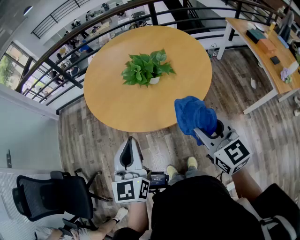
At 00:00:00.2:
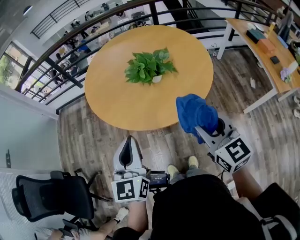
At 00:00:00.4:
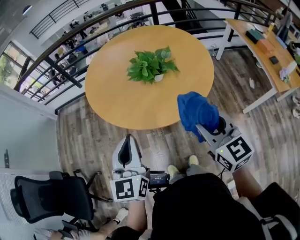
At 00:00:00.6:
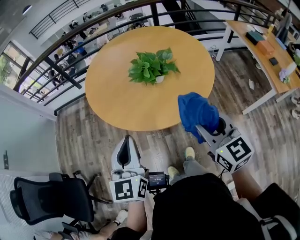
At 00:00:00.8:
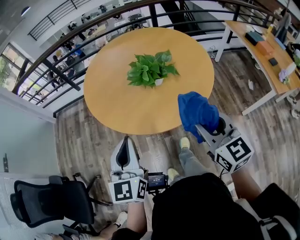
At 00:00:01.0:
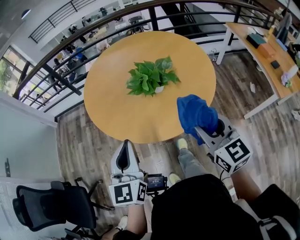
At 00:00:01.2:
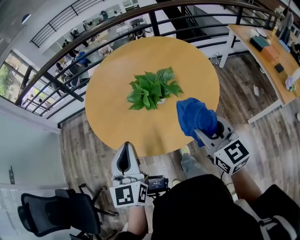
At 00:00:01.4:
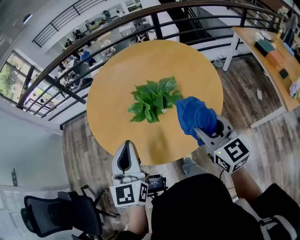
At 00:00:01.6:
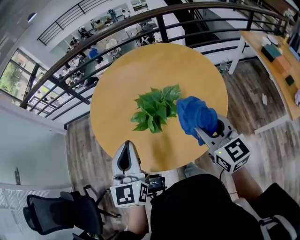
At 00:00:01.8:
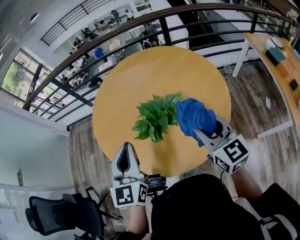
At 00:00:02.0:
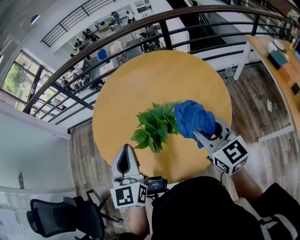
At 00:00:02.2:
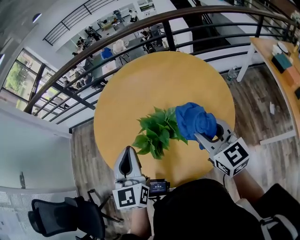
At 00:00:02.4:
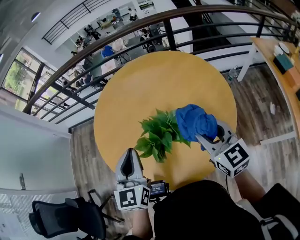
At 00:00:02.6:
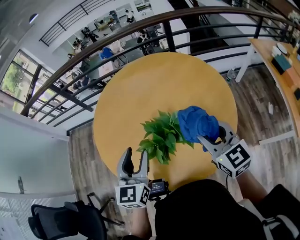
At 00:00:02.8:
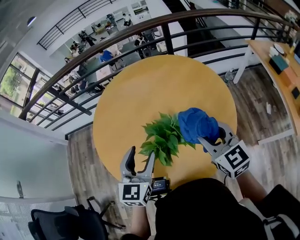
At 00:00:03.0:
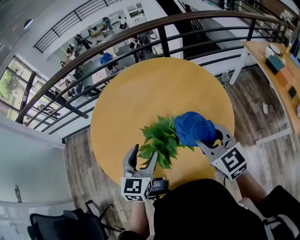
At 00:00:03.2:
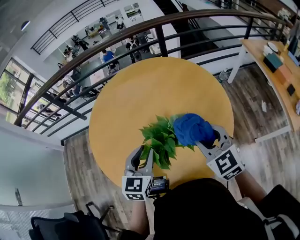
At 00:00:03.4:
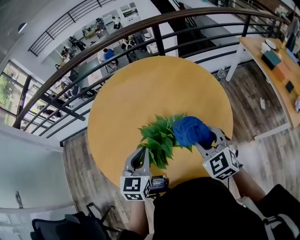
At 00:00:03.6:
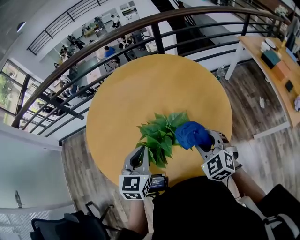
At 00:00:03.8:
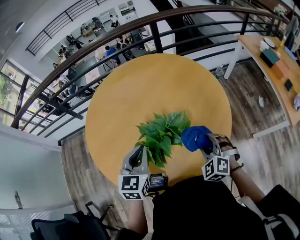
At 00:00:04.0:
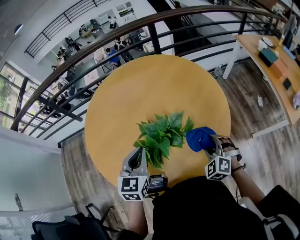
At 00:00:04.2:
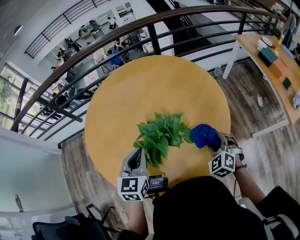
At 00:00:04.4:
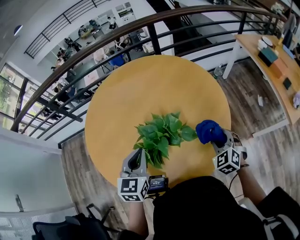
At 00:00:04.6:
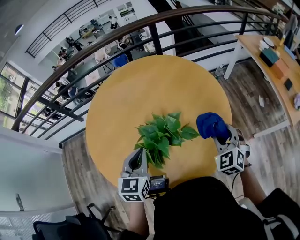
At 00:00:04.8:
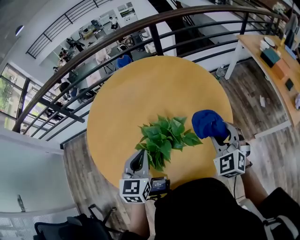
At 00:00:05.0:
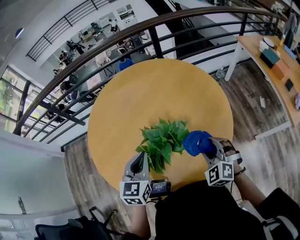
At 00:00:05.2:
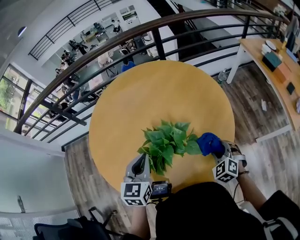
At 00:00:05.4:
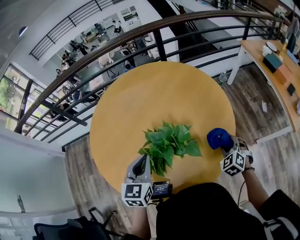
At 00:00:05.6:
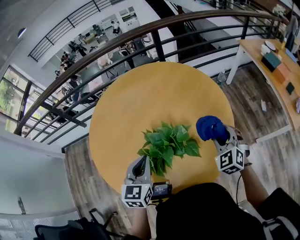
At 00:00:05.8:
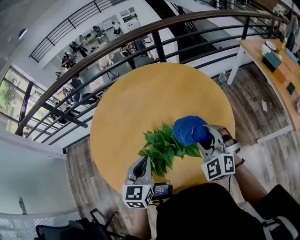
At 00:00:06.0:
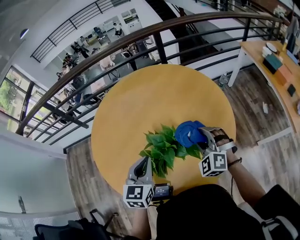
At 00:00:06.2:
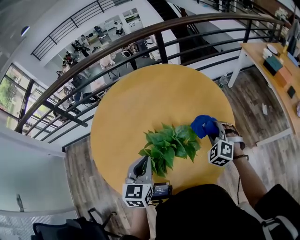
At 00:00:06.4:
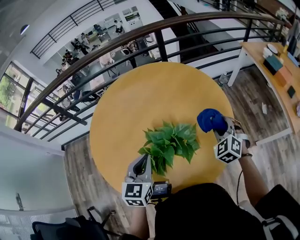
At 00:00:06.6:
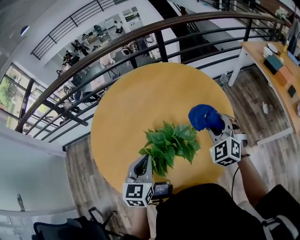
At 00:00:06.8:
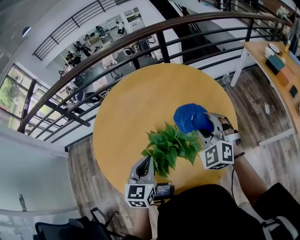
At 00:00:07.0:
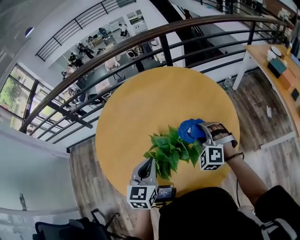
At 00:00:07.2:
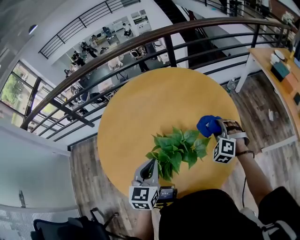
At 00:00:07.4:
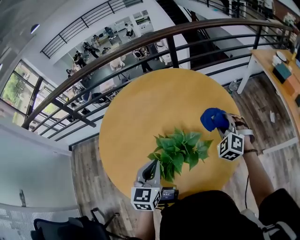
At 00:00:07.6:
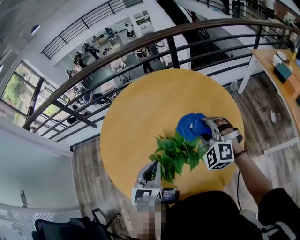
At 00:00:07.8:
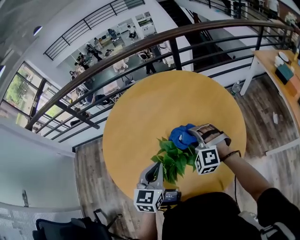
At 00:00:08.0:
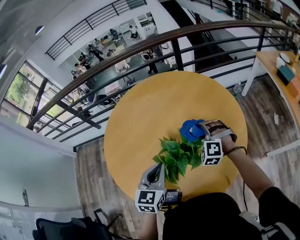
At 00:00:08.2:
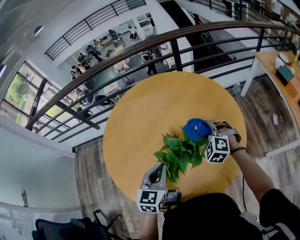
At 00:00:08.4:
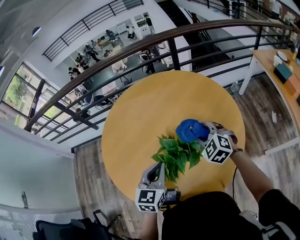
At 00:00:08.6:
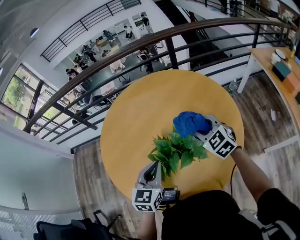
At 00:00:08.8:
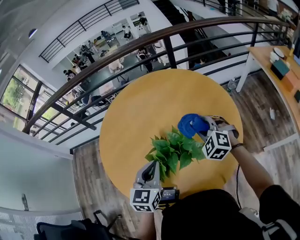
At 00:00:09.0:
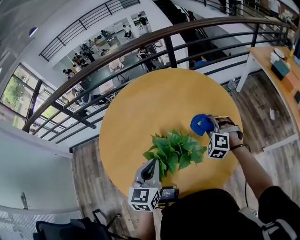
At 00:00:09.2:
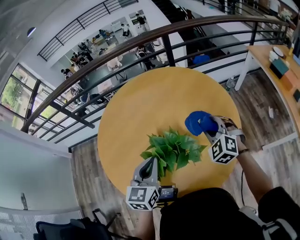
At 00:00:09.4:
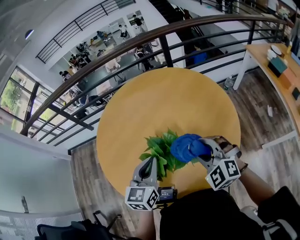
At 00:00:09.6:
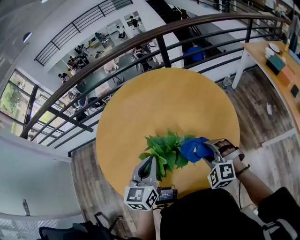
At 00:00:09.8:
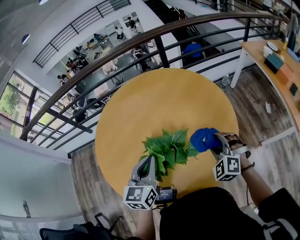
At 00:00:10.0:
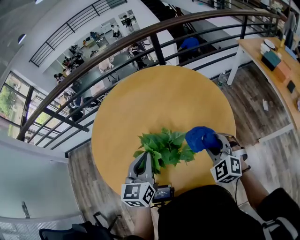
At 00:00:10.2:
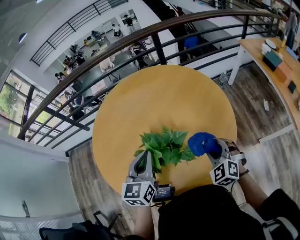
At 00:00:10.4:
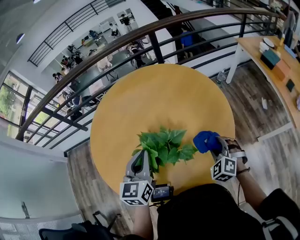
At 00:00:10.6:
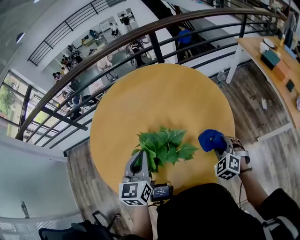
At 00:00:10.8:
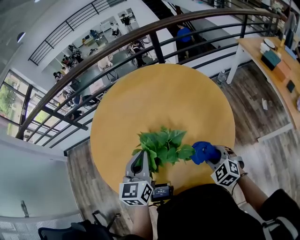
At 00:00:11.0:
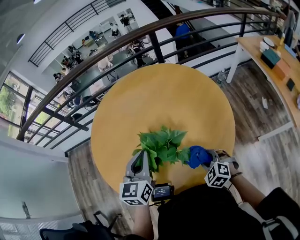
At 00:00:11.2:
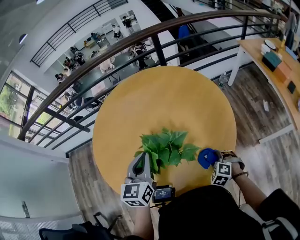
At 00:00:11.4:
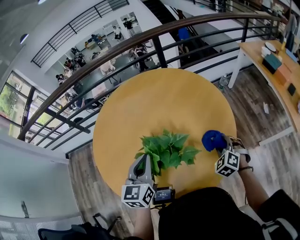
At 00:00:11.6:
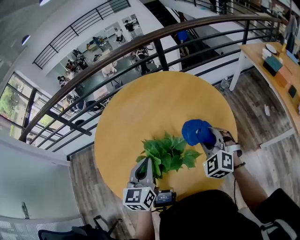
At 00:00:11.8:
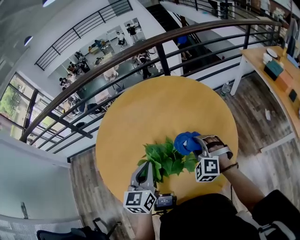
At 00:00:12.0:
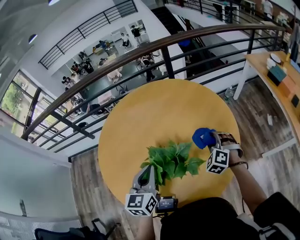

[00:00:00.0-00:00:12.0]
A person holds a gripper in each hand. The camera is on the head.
00:00:00.0 to 00:00:01.6: Both grippers move forward, approximately 20 cm.
00:00:01.6 to 00:00:03.0: The right gripper is displaced forward by approximately 10 cm; the left gripper travels forward, downward and to the right by about 15 cm, swivels some 20 degrees, and opens.
00:00:03.0 to 00:00:04.4: The right gripper travels downward and to the right by roughly 20 cm, and changes its angle by about 40 degrees; the left gripper closes up.
00:00:04.4 to 00:00:06.0: The right gripper goes up and down, some 15 cm each way, reversing 3 times, and rotates roughly 20 degrees.
00:00:06.0 to 00:00:07.6: The right gripper moves left and right over roughly 15 cm, changing direction 3 times.
00:00:07.6 to 00:00:09.0: The right gripper is displaced downward and to the right by some 15 cm.
00:00:09.0 to 00:00:10.4: The right gripper moves backward and to the right, approximately 15 cm.
00:00:10.4 to 00:00:12.0: The right gripper goes up and down, about 20 cm each way, reversing 2 times.

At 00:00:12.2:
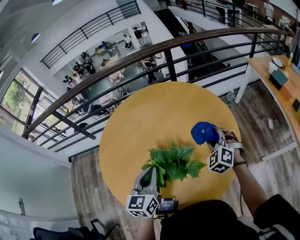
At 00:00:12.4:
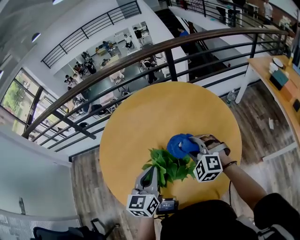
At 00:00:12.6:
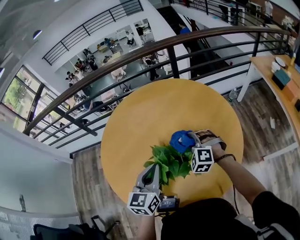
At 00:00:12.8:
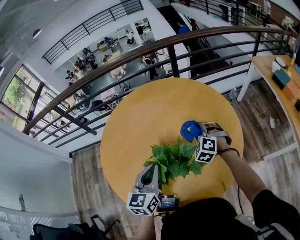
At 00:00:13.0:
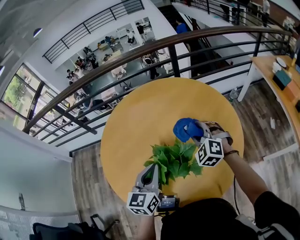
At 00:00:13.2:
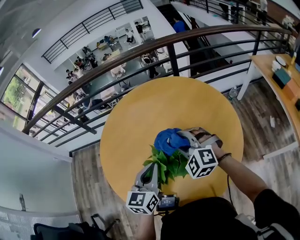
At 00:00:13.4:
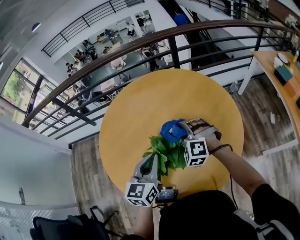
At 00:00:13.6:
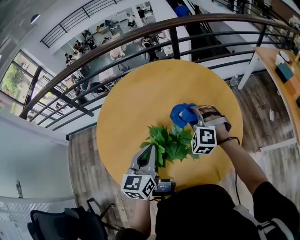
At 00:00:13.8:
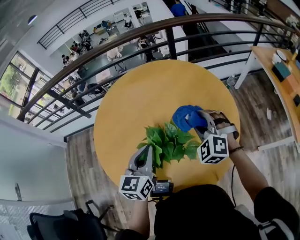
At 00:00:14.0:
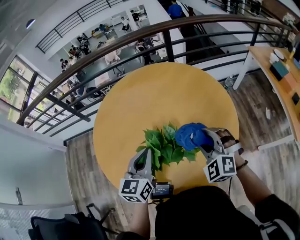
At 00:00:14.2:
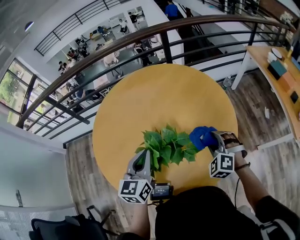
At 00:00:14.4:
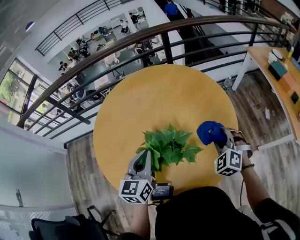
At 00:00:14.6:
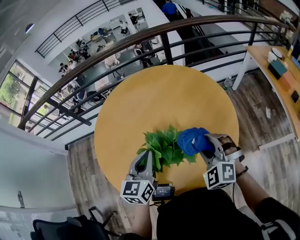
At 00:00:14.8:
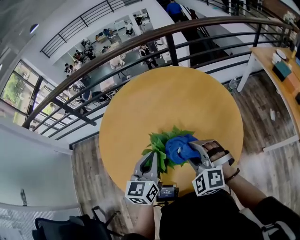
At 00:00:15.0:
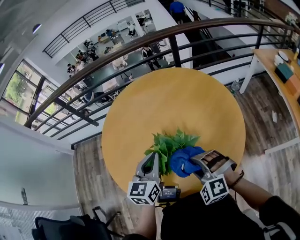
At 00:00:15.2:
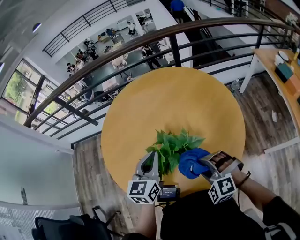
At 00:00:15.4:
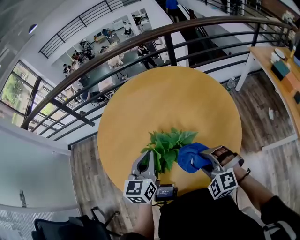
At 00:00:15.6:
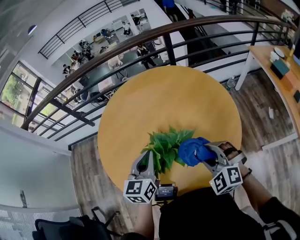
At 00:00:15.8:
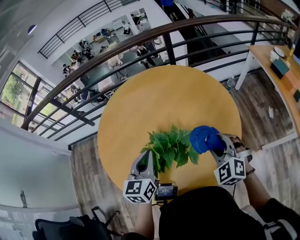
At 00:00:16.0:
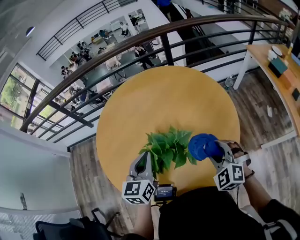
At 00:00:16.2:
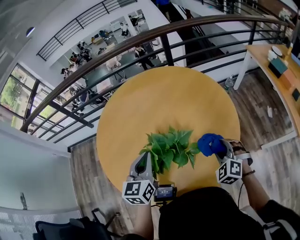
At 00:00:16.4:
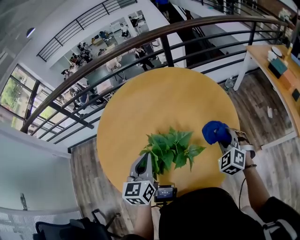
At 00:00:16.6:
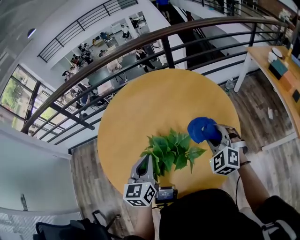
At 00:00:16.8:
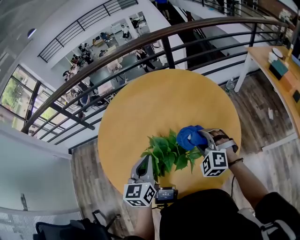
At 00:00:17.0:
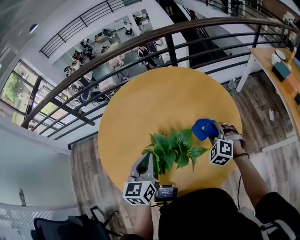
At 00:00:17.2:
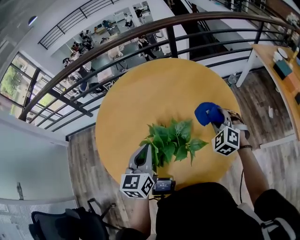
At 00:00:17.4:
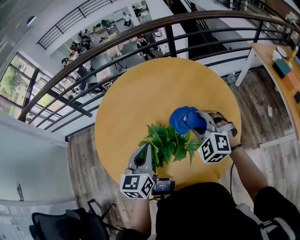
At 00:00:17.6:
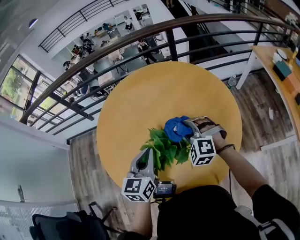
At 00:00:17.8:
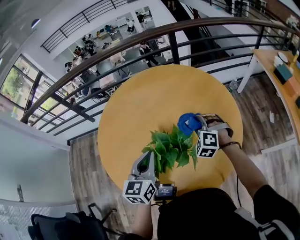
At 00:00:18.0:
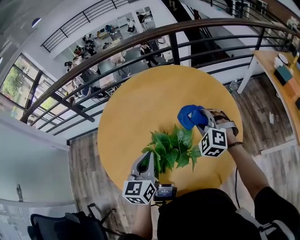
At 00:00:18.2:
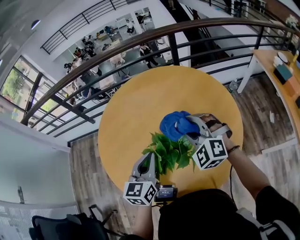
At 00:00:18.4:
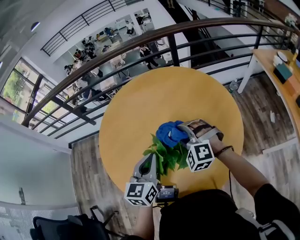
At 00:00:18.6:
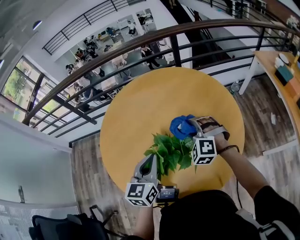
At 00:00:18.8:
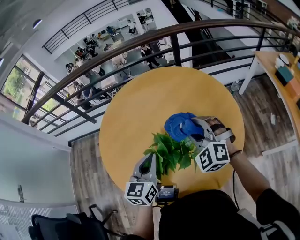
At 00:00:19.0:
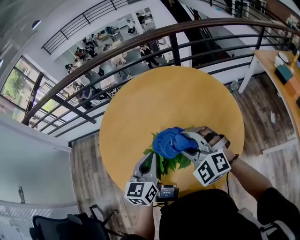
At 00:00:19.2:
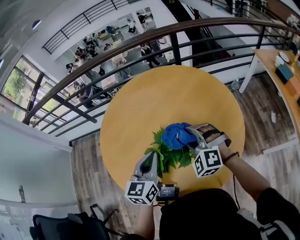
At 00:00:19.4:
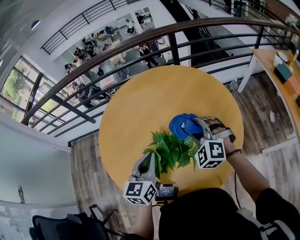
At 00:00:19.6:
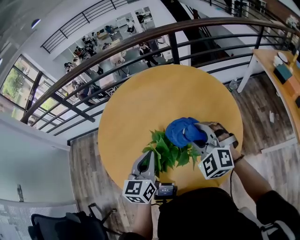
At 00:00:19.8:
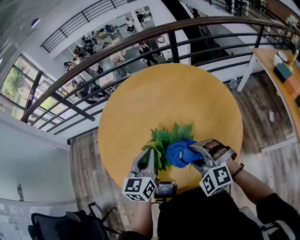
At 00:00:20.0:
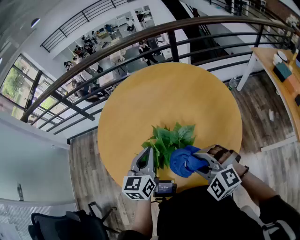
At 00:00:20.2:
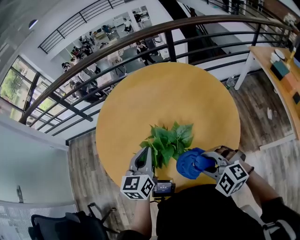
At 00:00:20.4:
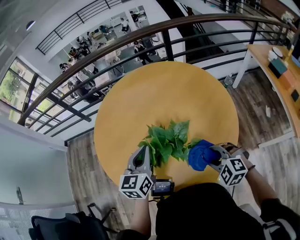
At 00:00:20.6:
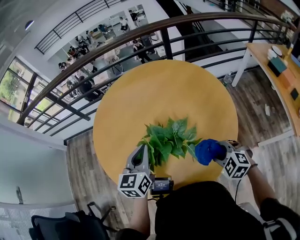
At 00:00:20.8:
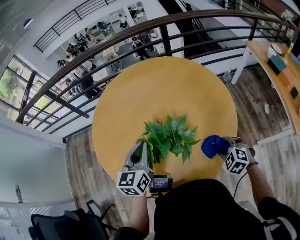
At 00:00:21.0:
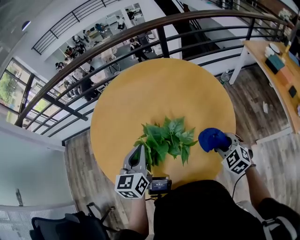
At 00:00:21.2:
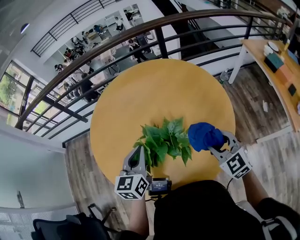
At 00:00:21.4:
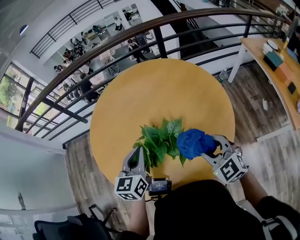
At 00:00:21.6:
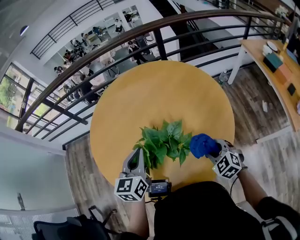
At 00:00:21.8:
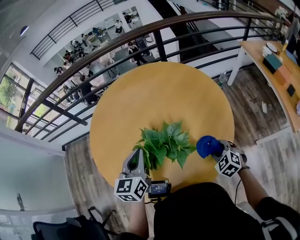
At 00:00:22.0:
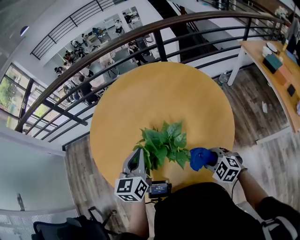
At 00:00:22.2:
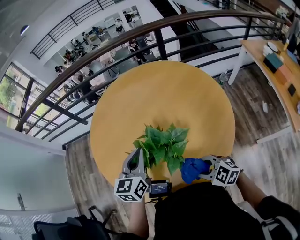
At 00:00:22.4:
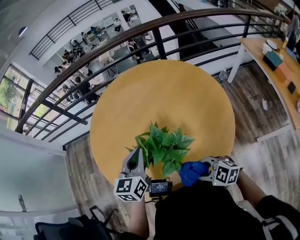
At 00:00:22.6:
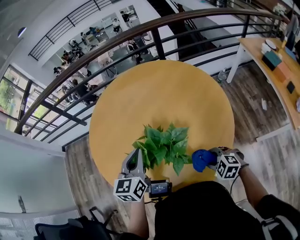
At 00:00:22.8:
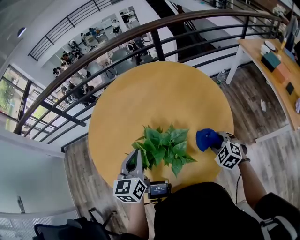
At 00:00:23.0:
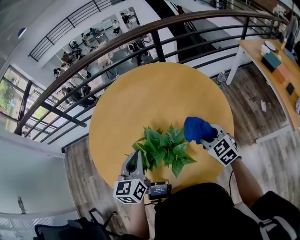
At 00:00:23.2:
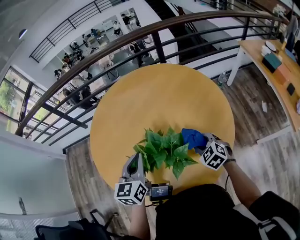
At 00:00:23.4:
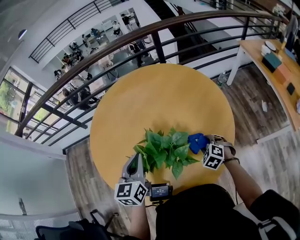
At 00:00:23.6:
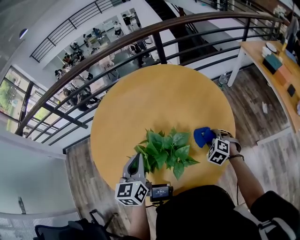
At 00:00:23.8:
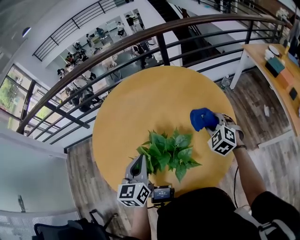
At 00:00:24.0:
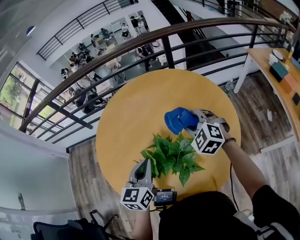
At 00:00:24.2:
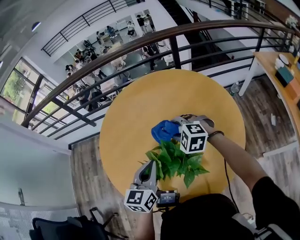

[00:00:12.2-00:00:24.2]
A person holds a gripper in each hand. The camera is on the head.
00:00:12.2 to 00:00:13.8: The right gripper goes left and right, approximately 15 cm each way, reversing 3 times.
00:00:13.8 to 00:00:15.2: The right gripper heads backward, covering some 15 cm, moves about 10 cm to the right and comes back, and turns by roughly 20 degrees.
00:00:15.2 to 00:00:16.6: The right gripper is displaced forward and to the right by about 15 cm, and swivels some 30 degrees.
00:00:16.6 to 00:00:18.2: The right gripper goes left and right, approximately 15 cm each way, reversing 4 times, and rotates approximately 20 degrees.
00:00:18.2 to 00:00:19.8: The right gripper goes forward and backward, about 15 cm each way, reversing 2 times.
00:00:19.8 to 00:00:21.2: The right gripper travels to the right by about 15 cm, and swivels approximately 40 degrees.
00:00:21.2 to 00:00:22.6: The right gripper goes up and down, approximately 15 cm each way, reversing 2 times, and tips its fingers downward by about 30 degrees.
00:00:22.6 to 00:00:24.2: The right gripper goes up and down, about 20 cm each way, reversing 3 times, and rotates roughly 20 degrees.
